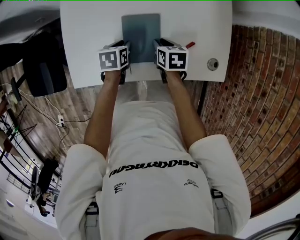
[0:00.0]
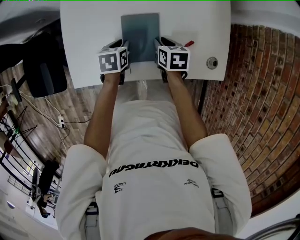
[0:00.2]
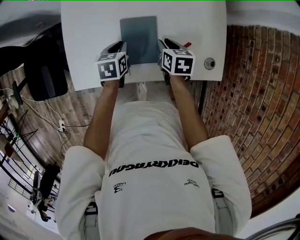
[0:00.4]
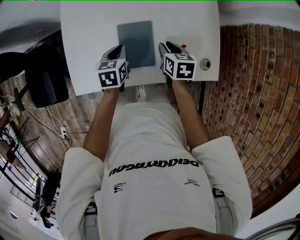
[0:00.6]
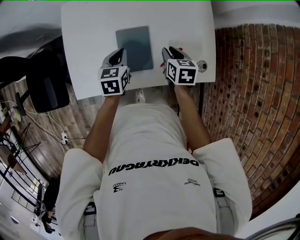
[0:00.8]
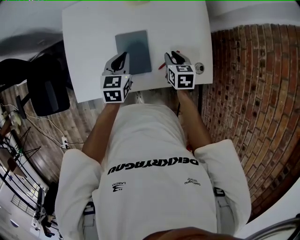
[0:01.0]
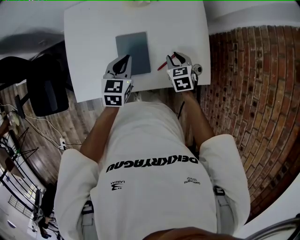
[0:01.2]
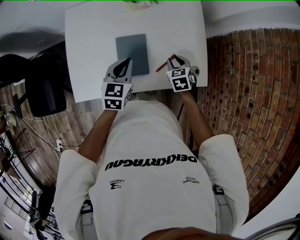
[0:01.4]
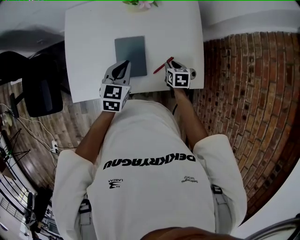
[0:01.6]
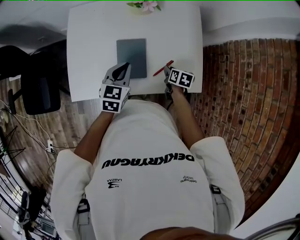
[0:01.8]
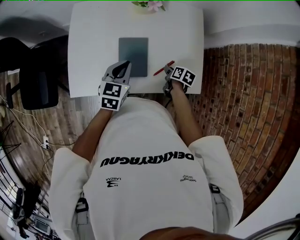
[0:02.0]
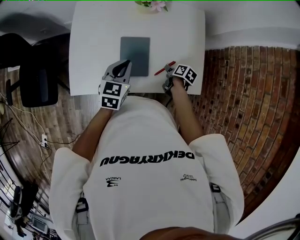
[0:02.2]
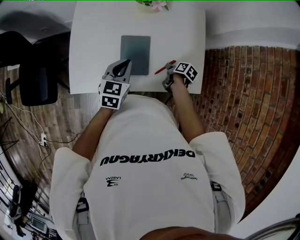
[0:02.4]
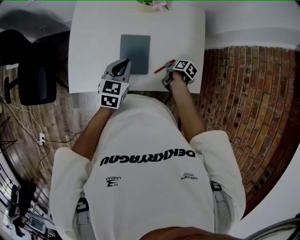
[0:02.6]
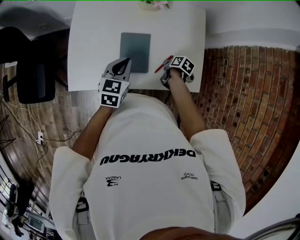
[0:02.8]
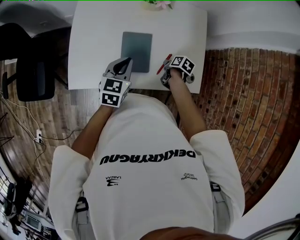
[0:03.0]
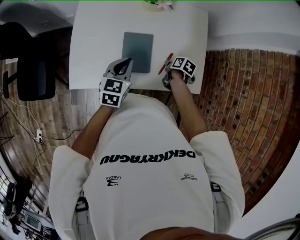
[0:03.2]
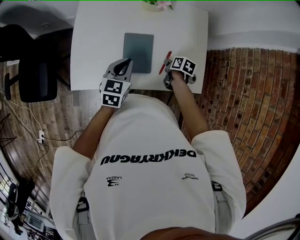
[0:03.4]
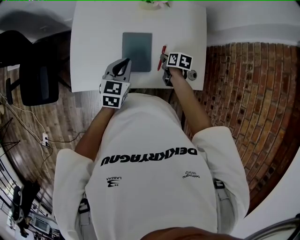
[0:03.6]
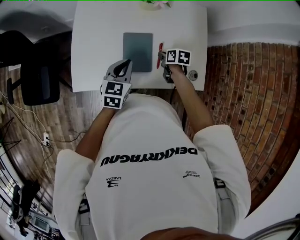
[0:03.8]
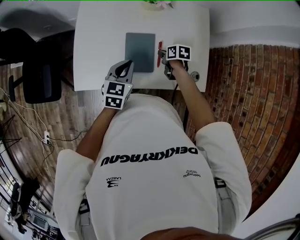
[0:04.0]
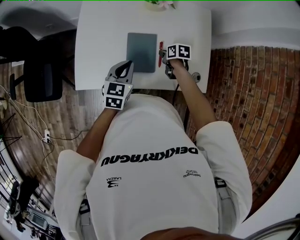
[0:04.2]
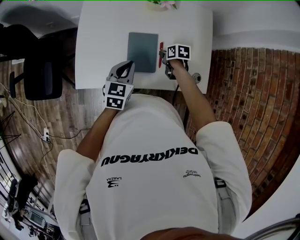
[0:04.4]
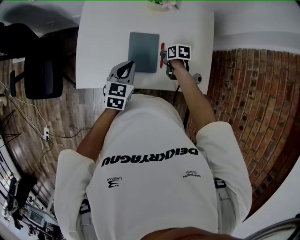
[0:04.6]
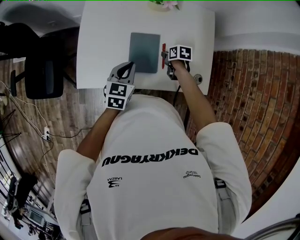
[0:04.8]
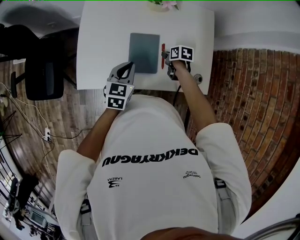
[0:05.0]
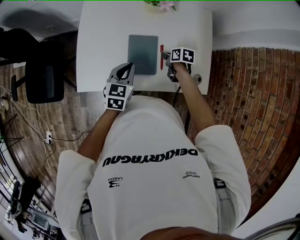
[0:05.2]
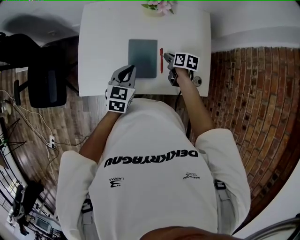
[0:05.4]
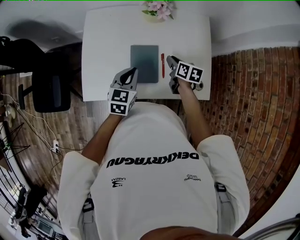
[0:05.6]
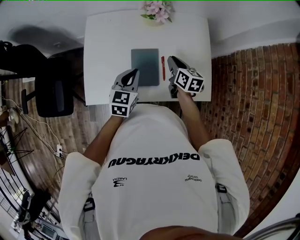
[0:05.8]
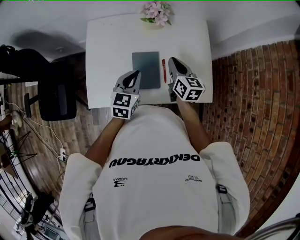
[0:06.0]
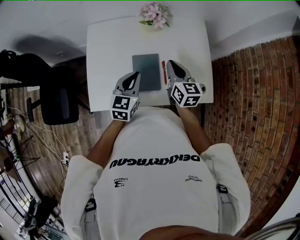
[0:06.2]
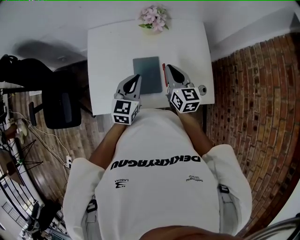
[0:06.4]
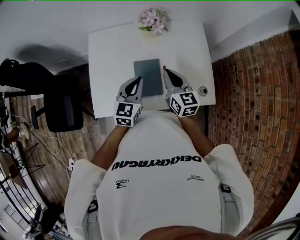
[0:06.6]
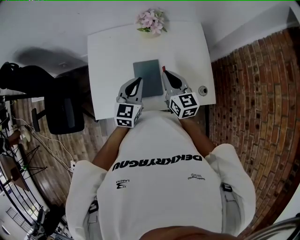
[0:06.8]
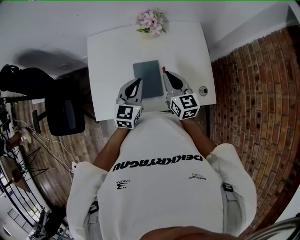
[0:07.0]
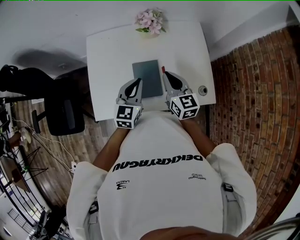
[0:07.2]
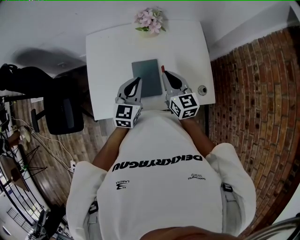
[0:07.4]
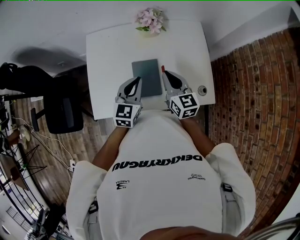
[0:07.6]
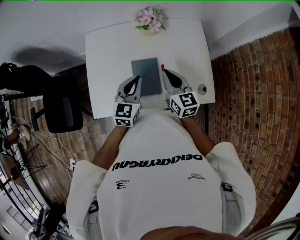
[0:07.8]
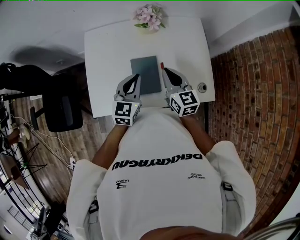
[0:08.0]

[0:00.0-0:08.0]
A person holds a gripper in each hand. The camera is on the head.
0:00.0 to 0:01.6: The right gripper travels to the right and upward by roughly 15 cm, while the left gripper goes about 20 cm upward, rotates roughly 40 degrees, and closes.
0:01.6 to 0:03.2: The right gripper rotates approximately 30 degrees.
0:03.2 to 0:04.8: The right gripper heads to the left and forward, covering roughly 10 cm, and turns by approximately 30 degrees.
0:04.8 to 0:06.4: The left gripper heads upward, covering some 10 cm. The right gripper heads upward, covering approximately 25 cm, and angles its fingers upward, by approximately 50 degrees.
0:06.4 to 0:08.0: The grippers move only a little.

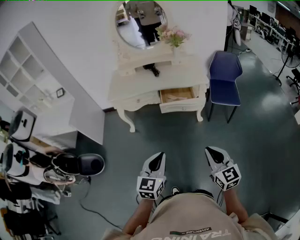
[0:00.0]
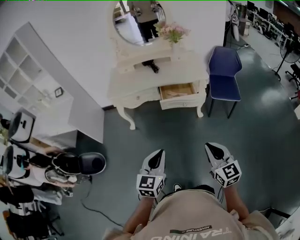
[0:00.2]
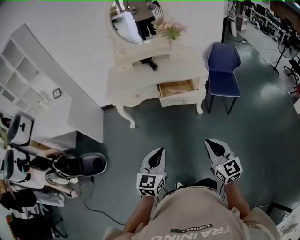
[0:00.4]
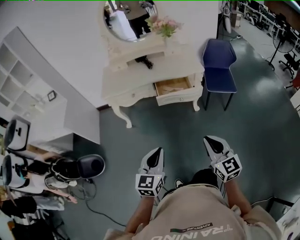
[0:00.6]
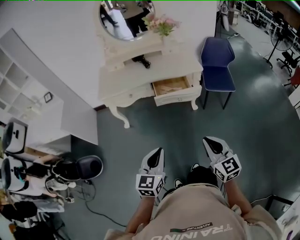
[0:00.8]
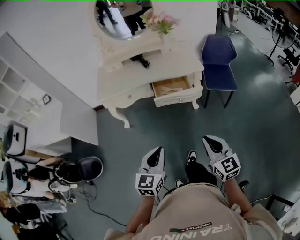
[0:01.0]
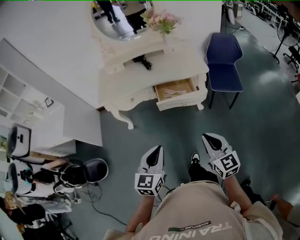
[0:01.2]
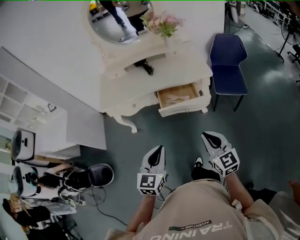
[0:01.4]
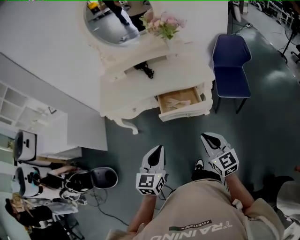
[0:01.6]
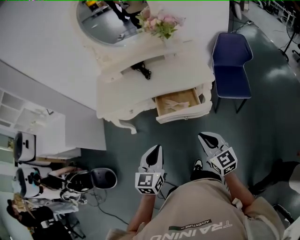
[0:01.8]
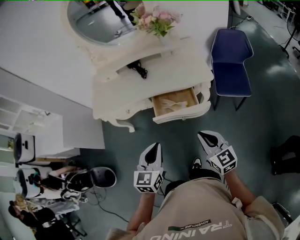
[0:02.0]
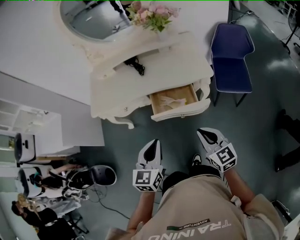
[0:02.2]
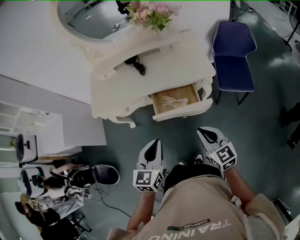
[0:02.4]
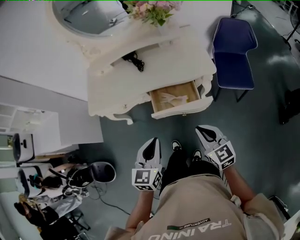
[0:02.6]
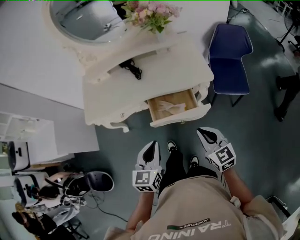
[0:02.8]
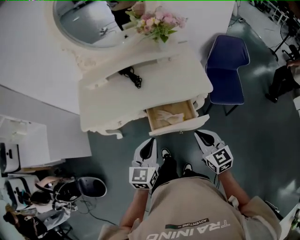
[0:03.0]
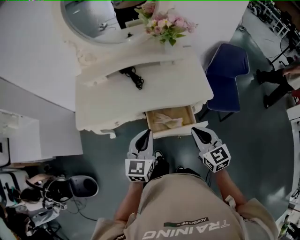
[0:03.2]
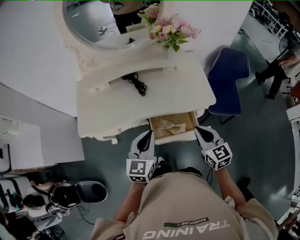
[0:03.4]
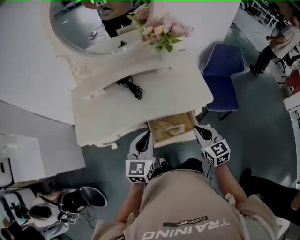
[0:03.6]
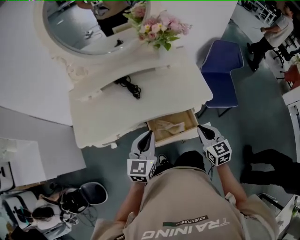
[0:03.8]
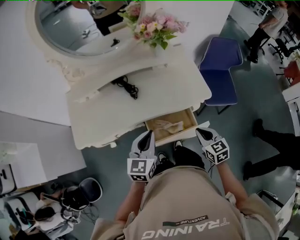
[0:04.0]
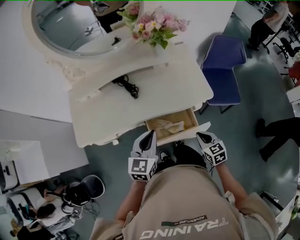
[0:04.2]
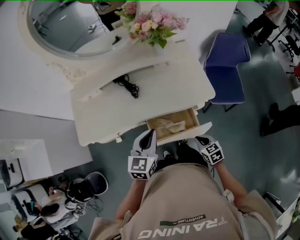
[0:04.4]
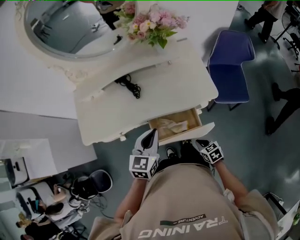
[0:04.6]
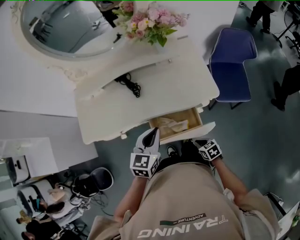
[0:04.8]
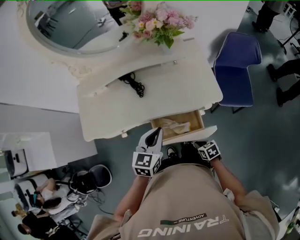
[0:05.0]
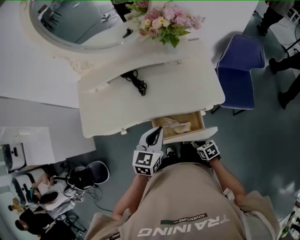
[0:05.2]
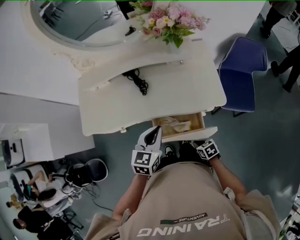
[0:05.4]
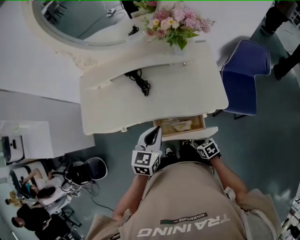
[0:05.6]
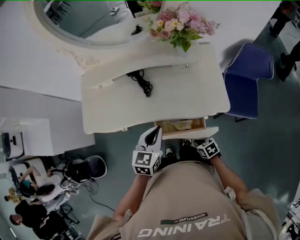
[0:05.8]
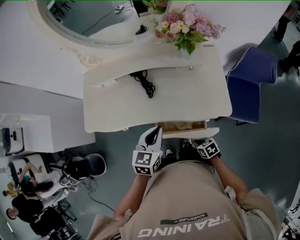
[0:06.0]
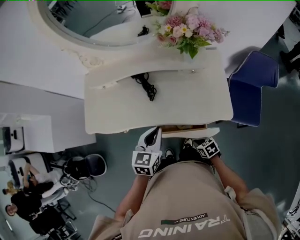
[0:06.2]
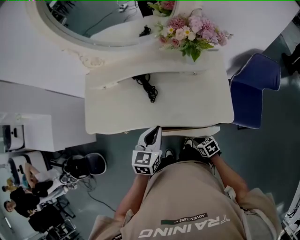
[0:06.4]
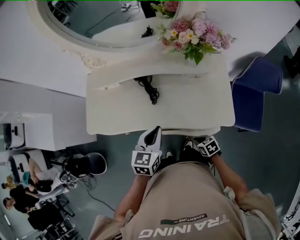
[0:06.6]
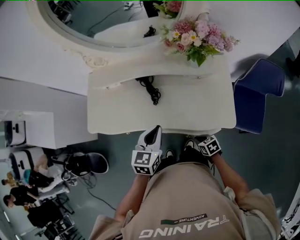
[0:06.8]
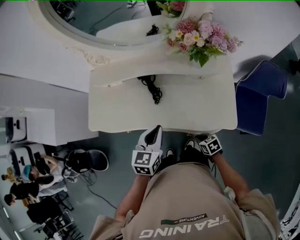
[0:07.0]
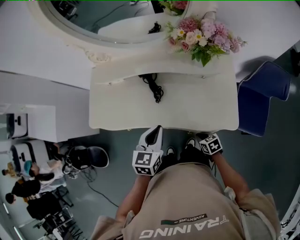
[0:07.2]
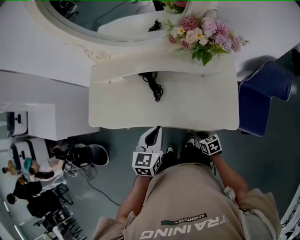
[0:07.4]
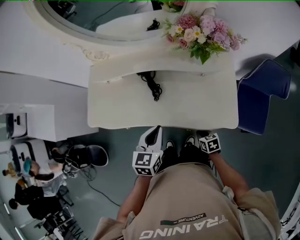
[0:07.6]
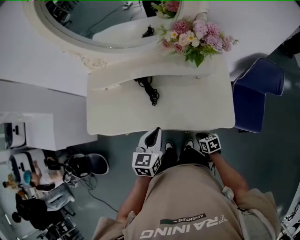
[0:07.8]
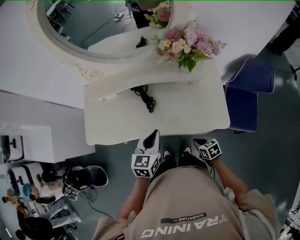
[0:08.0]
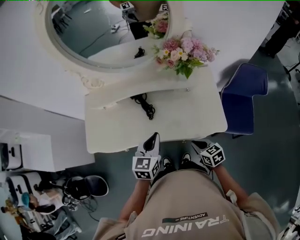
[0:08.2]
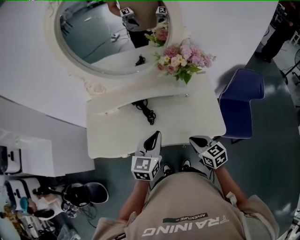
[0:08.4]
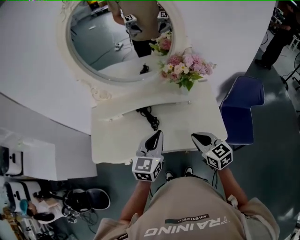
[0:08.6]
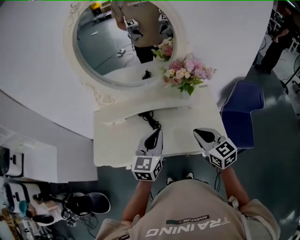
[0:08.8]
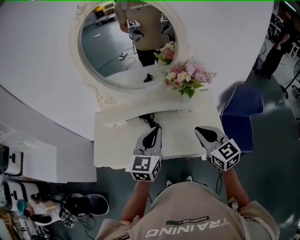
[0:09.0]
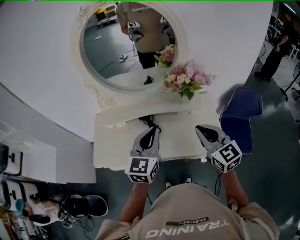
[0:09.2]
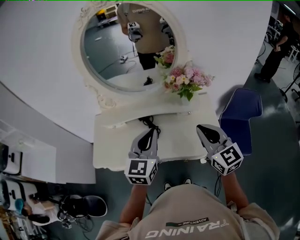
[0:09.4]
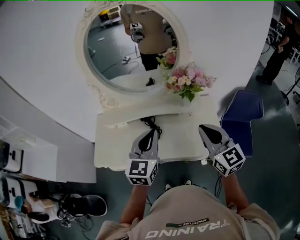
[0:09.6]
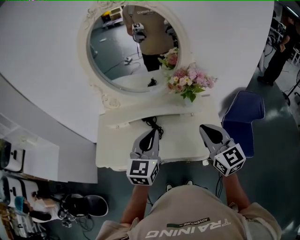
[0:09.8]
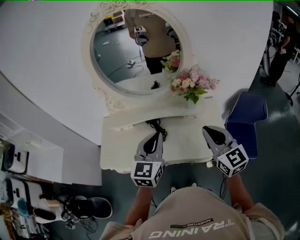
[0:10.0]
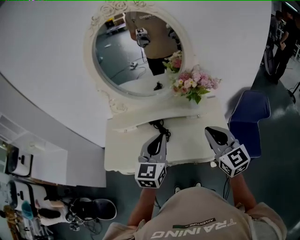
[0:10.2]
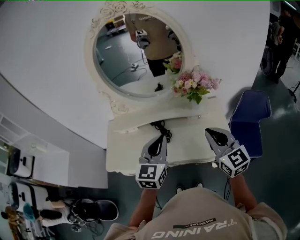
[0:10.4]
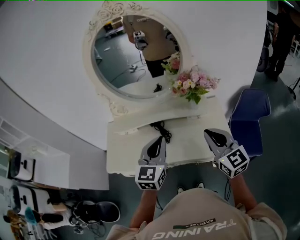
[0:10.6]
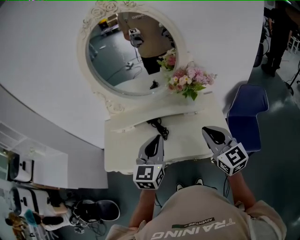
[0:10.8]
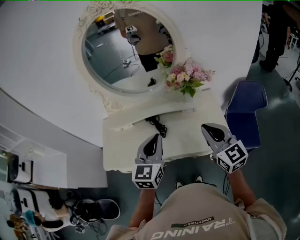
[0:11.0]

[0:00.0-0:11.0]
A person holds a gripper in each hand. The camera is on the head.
0:00.0 to 0:01.6: Both grippers move forward, approximately 25 cm.
0:01.6 to 0:03.2: Both grippers move forward, some 25 cm.
0:03.2 to 0:04.8: The left gripper moves forward and to the right, approximately 10 cm. Meanwhile the right gripper goes roughly 25 cm downward, and points its fingers about 40 degrees further downward.
0:04.8 to 0:06.2: Both grippers travel together forward, roughly 10 cm.
0:06.2 to 0:07.8: The right gripper goes approximately 5 cm forward.
0:07.8 to 0:09.4: The right gripper shifts roughly 50 cm upward, and points its fingers some 50 degrees further upward, while the left gripper heads upward, covering about 20 cm, and changes its angle by roughly 30 degrees.
0:09.4 to 0:11.0: The grippers make only small movements.

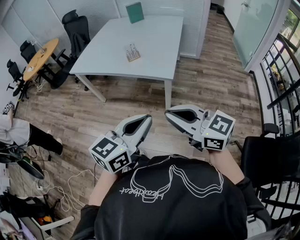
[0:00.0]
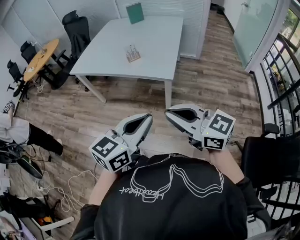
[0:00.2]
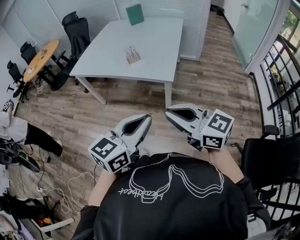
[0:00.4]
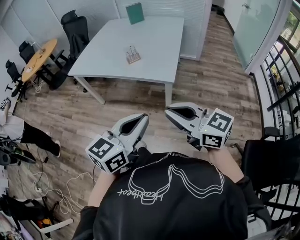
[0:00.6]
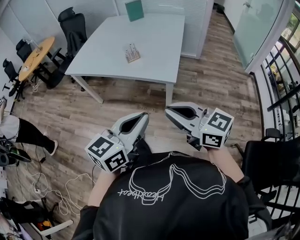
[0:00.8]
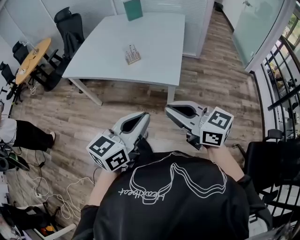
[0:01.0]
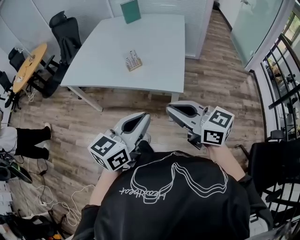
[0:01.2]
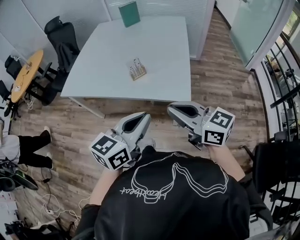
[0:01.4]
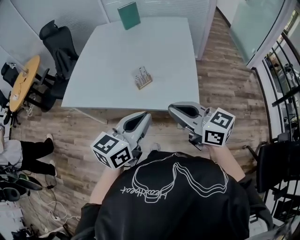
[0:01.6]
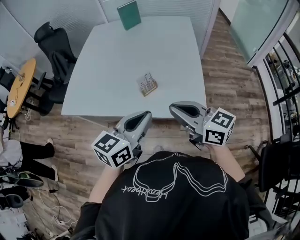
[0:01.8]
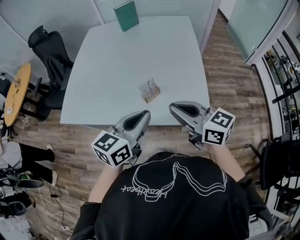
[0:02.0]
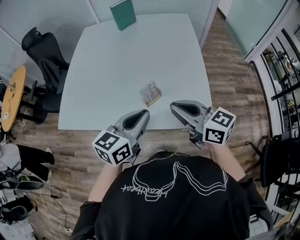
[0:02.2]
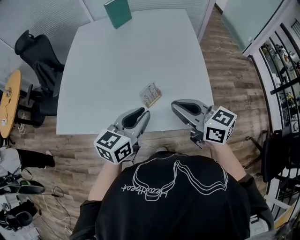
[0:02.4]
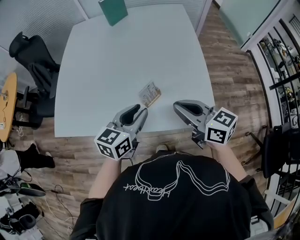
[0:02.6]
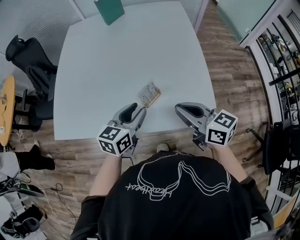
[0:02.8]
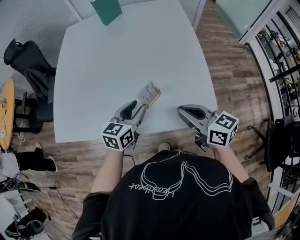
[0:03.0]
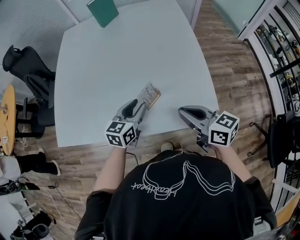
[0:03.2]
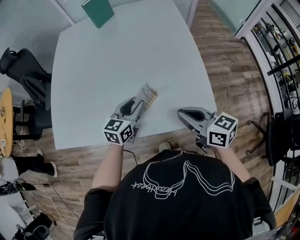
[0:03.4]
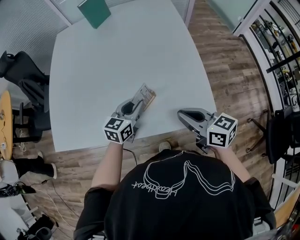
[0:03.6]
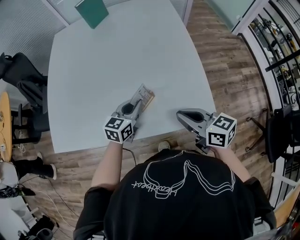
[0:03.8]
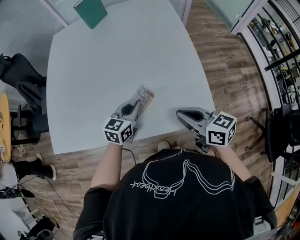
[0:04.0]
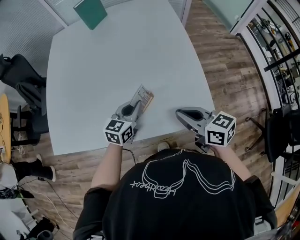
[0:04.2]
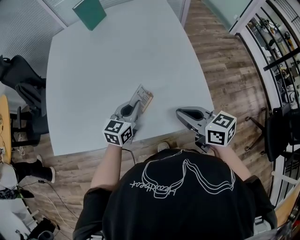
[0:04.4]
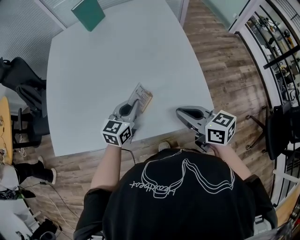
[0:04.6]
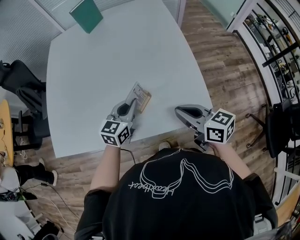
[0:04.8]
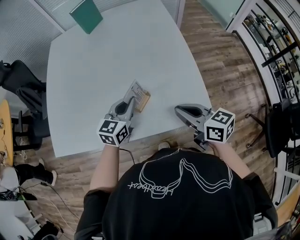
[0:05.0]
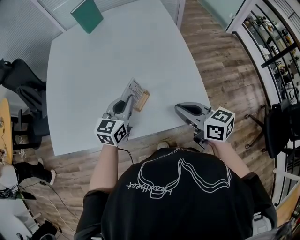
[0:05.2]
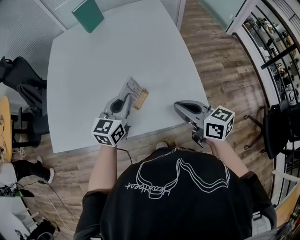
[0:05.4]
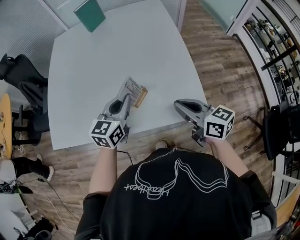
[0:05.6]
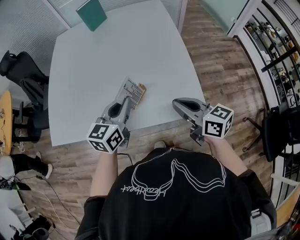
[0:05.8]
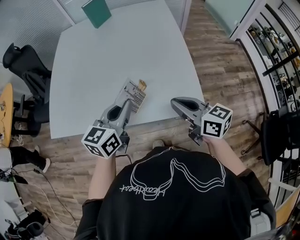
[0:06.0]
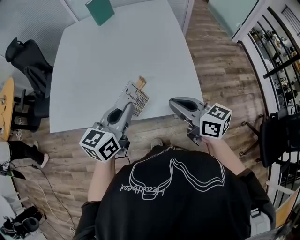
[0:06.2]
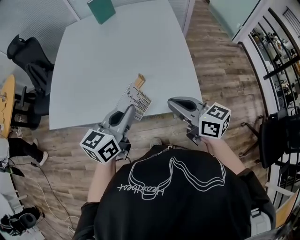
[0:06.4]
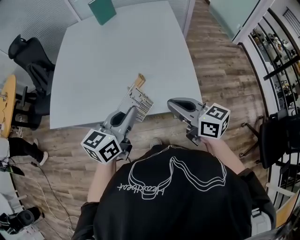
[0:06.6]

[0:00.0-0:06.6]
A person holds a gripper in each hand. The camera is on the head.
0:00.0 to 0:01.6: The two grippers go approximately 35 cm forward.
0:01.6 to 0:03.2: The right gripper shifts about 20 cm forward and downward, and changes its angle by about 20 degrees; the left gripper heads forward and downward, covering about 35 cm, and opens up.
0:03.2 to 0:05.0: The left gripper closes up.
0:05.0 to 0:06.6: The right gripper is displaced backward and upward by some 10 cm. The left gripper moves backward and upward, roughly 20 cm.
